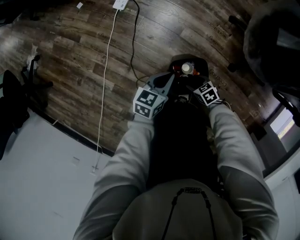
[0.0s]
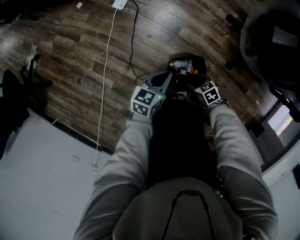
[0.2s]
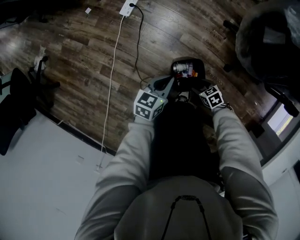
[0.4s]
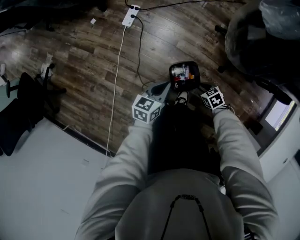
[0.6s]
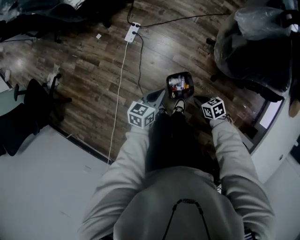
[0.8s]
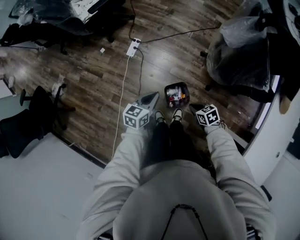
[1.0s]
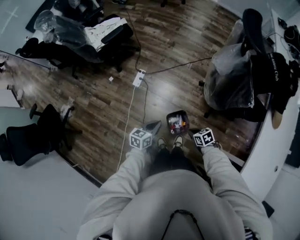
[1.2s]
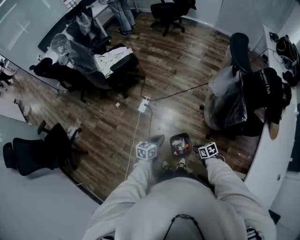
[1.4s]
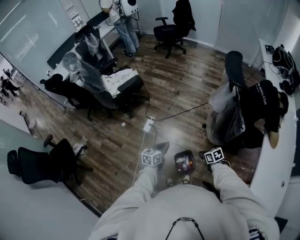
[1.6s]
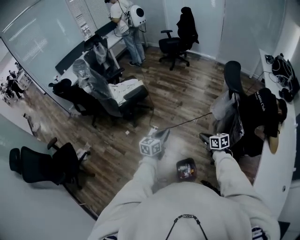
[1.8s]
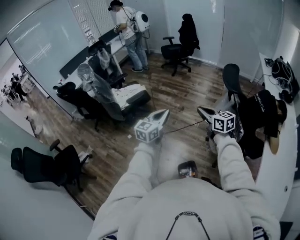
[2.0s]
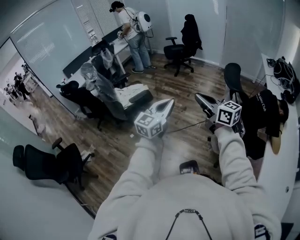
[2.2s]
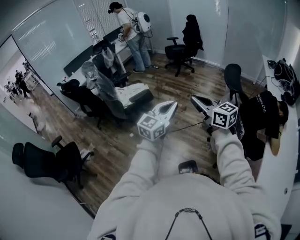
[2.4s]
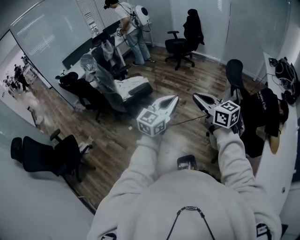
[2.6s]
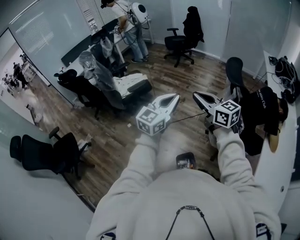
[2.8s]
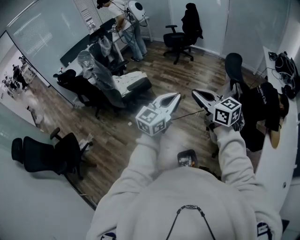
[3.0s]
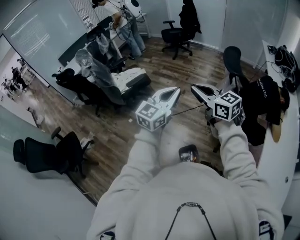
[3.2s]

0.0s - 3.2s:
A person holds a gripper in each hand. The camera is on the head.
0.0s - 1.6s: The grippers both shift upward by some 50 cm. The right gripper swivels approximately 30 degrees, and closes.
1.6s - 3.2s: The grippers both shift upward by about 40 cm. The left gripper rotates roughly 40 degrees. Meanwhile the right gripper tilts its fingers approximately 50 degrees upward.

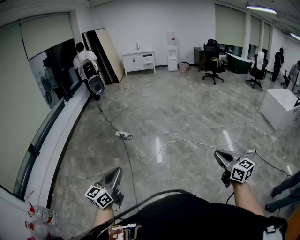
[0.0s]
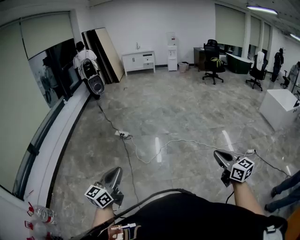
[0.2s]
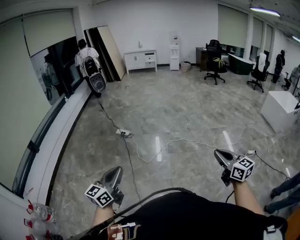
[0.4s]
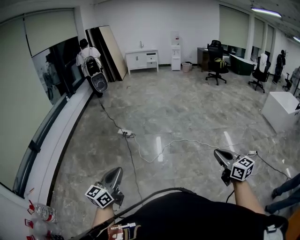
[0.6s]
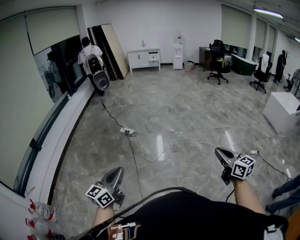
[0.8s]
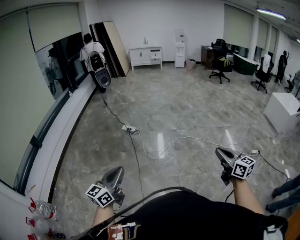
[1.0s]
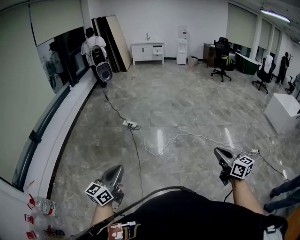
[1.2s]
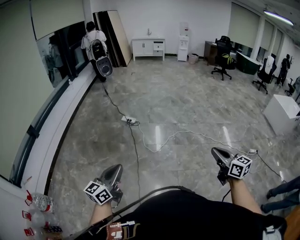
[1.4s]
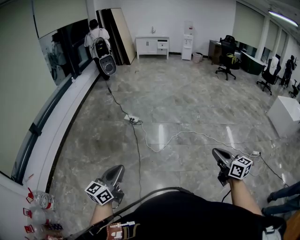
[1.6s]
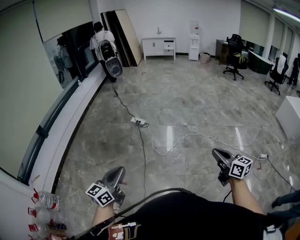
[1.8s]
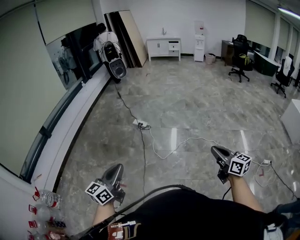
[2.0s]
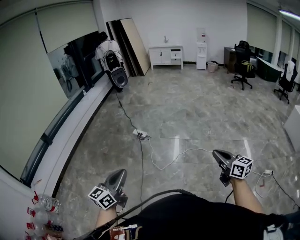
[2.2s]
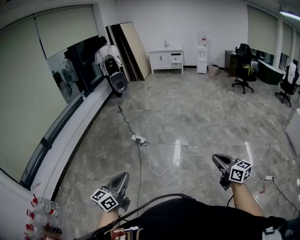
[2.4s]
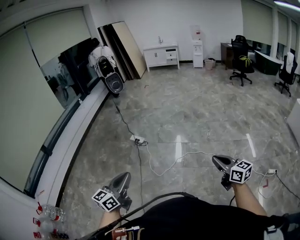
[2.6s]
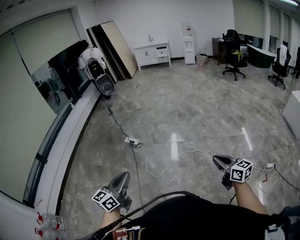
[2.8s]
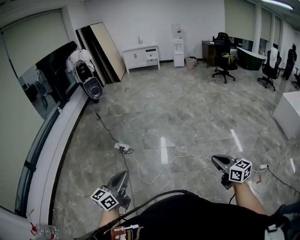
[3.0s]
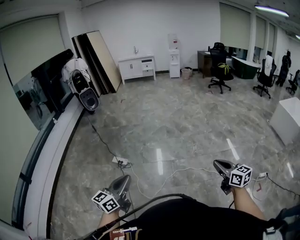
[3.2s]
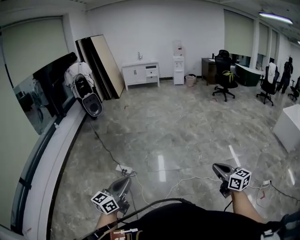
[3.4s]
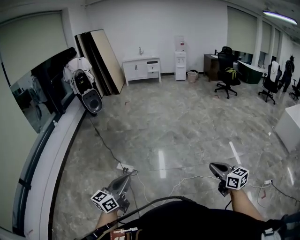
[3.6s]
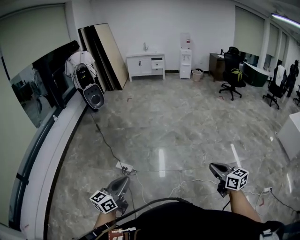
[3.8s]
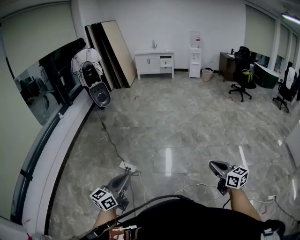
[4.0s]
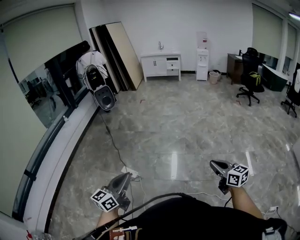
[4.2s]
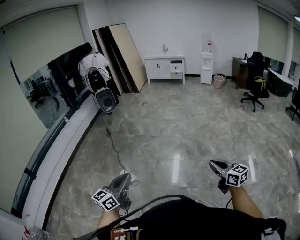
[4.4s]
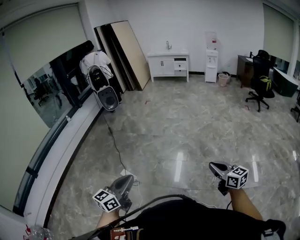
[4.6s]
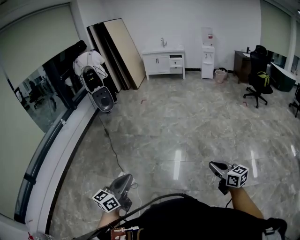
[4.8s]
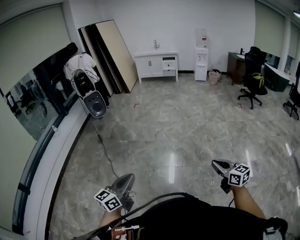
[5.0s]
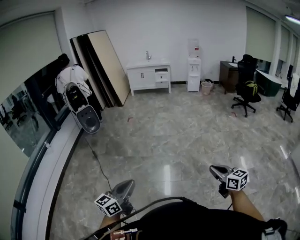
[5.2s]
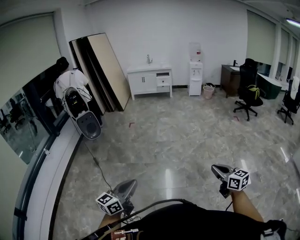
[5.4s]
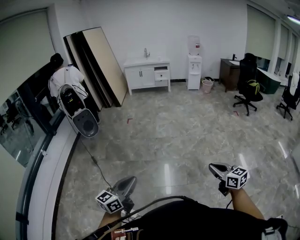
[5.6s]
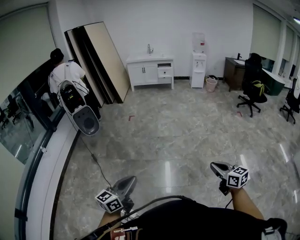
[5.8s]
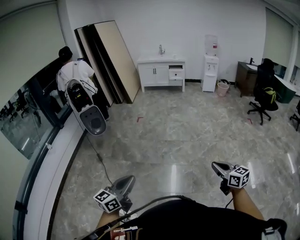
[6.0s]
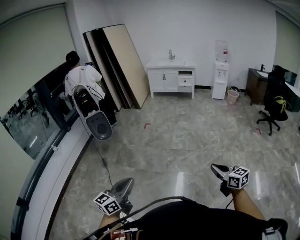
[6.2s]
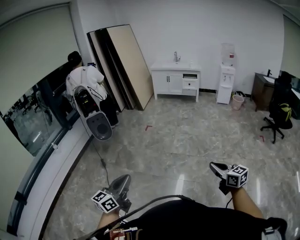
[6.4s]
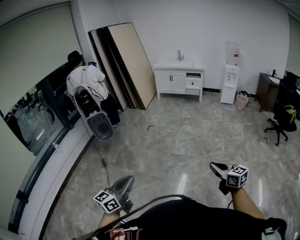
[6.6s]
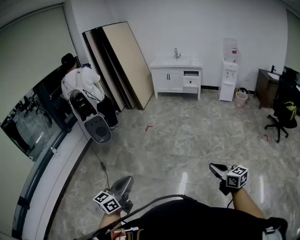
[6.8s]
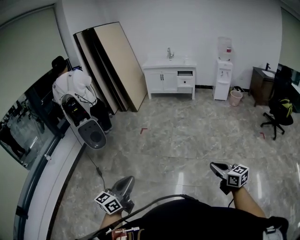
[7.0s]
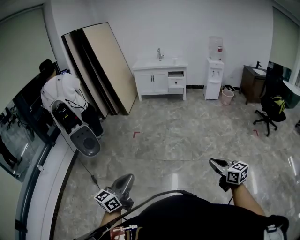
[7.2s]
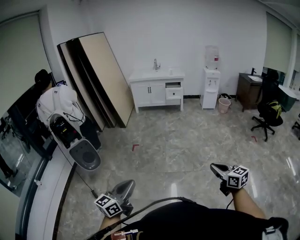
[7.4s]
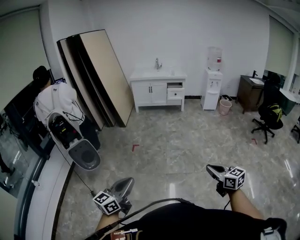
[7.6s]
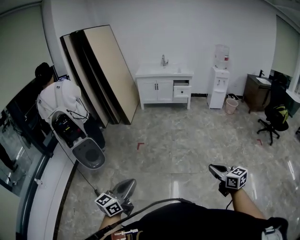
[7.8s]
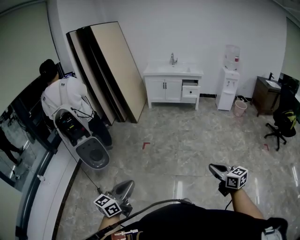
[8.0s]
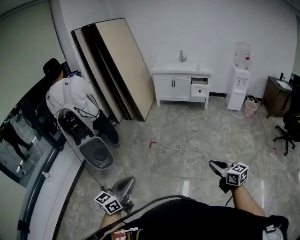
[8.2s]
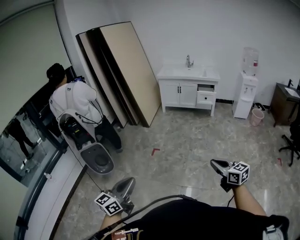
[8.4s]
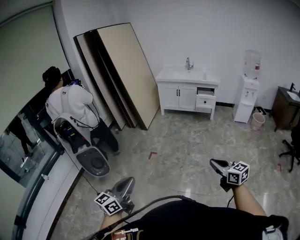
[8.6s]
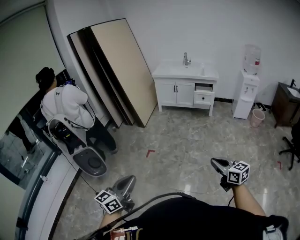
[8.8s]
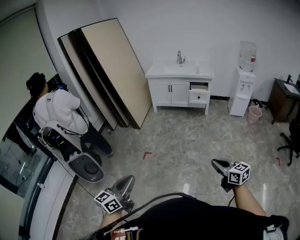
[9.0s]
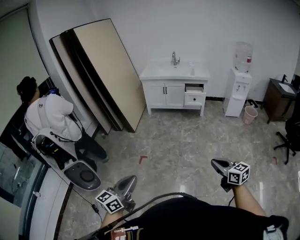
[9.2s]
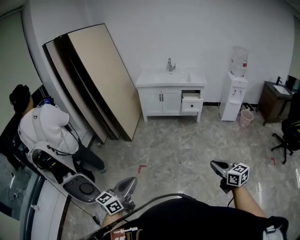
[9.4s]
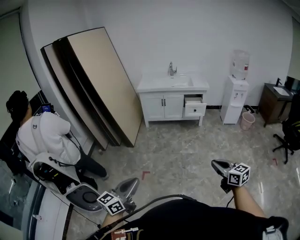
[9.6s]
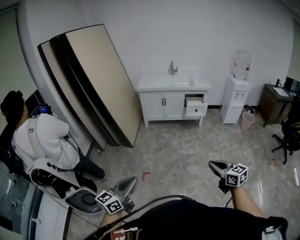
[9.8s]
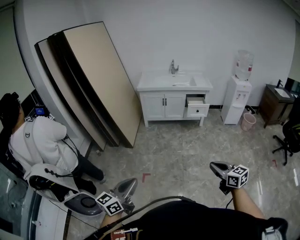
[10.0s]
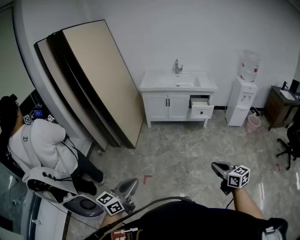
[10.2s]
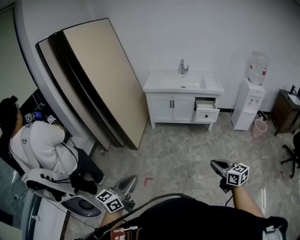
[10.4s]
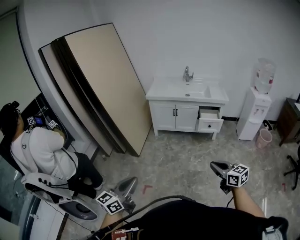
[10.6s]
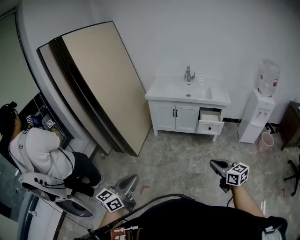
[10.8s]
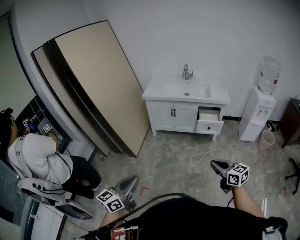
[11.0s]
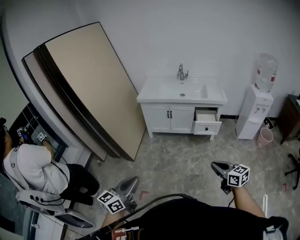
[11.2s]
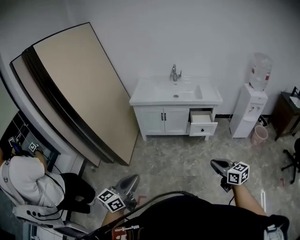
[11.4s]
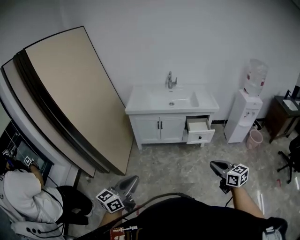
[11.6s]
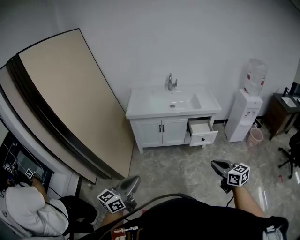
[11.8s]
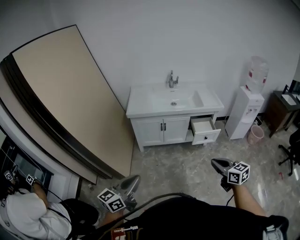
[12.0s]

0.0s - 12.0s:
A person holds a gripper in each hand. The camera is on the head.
0.0s - 1.6s: The grippers both shift to the left by about 15 cm.
1.6s - 3.0s: The pair of grippers is taken forward and to the right, roughly 40 cm.
3.0s - 4.4s: Both grippers are carried forward, some 50 cm.
4.4s - 6.0s: The two grippers travel together, forward, some 60 cm.
6.0s - 7.6s: Both grippers are carried forward, approximately 50 cm.
7.6s - 9.0s: Both grippers travel together forward, some 40 cm.
9.0s - 10.4s: The two grippers go roughly 40 cm forward.
10.4s - 12.0s: The grippers both shift forward by about 40 cm.

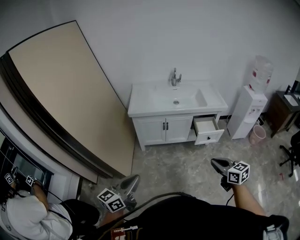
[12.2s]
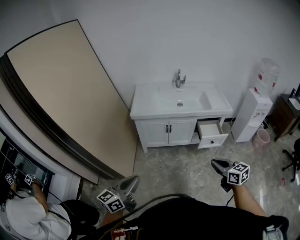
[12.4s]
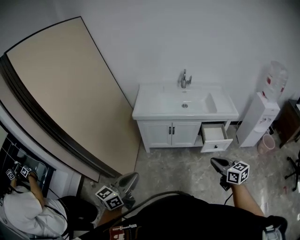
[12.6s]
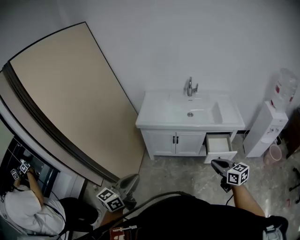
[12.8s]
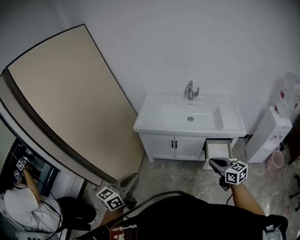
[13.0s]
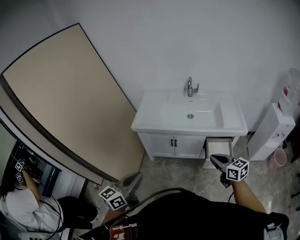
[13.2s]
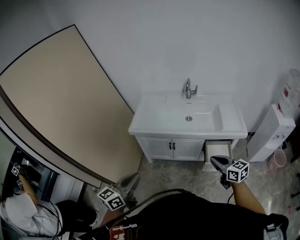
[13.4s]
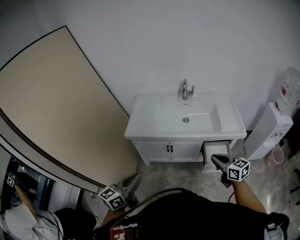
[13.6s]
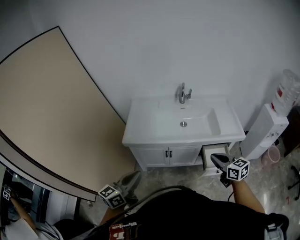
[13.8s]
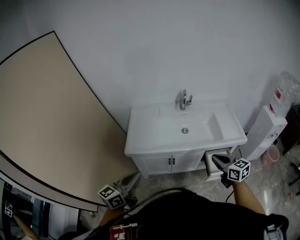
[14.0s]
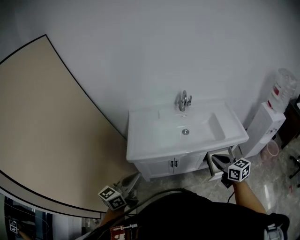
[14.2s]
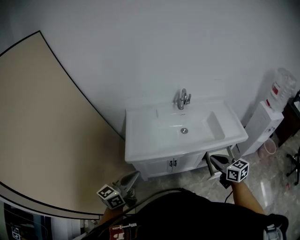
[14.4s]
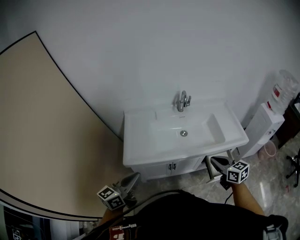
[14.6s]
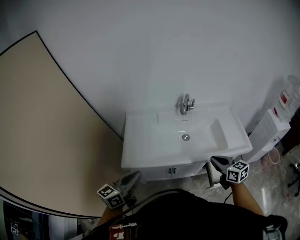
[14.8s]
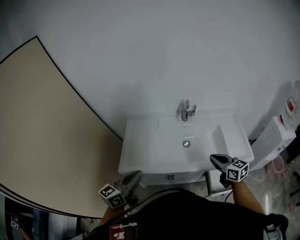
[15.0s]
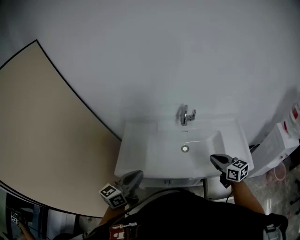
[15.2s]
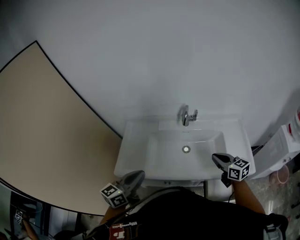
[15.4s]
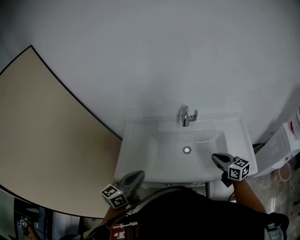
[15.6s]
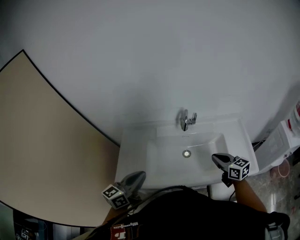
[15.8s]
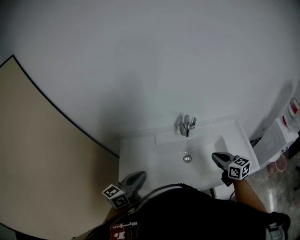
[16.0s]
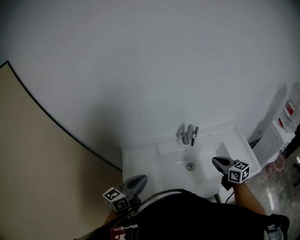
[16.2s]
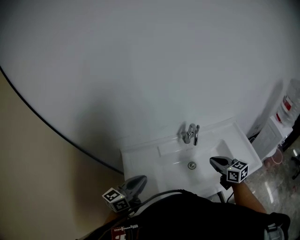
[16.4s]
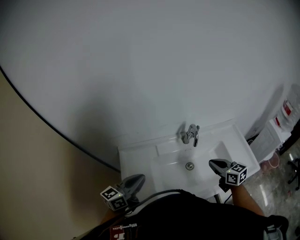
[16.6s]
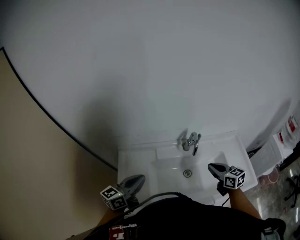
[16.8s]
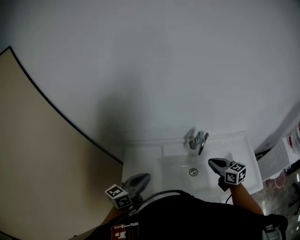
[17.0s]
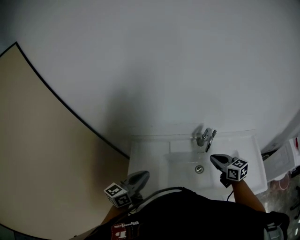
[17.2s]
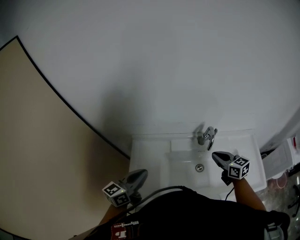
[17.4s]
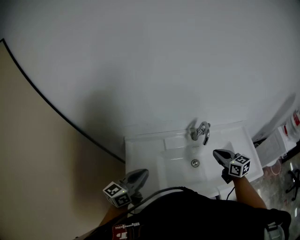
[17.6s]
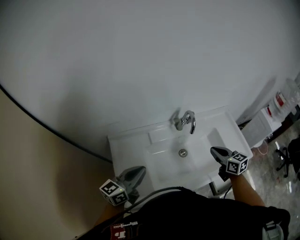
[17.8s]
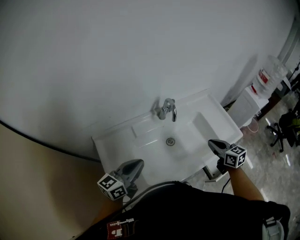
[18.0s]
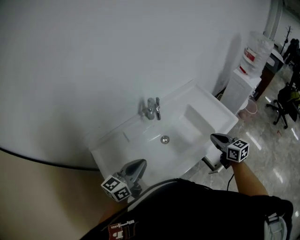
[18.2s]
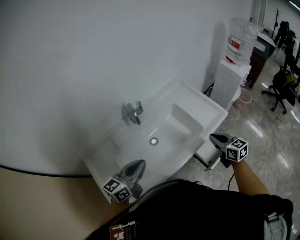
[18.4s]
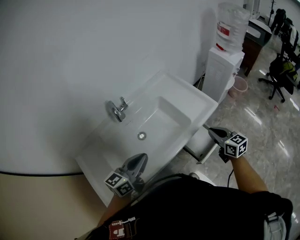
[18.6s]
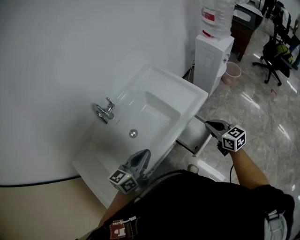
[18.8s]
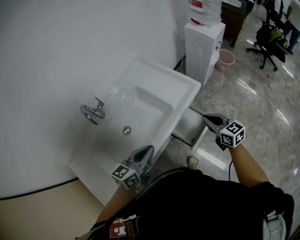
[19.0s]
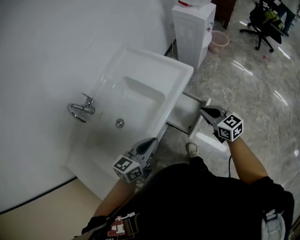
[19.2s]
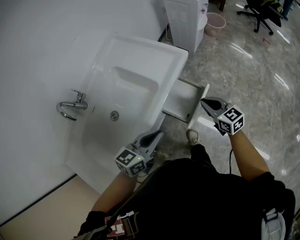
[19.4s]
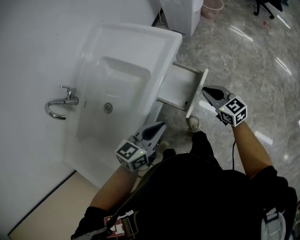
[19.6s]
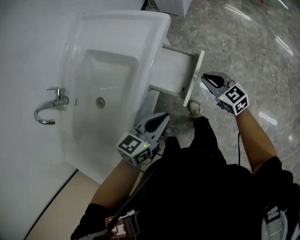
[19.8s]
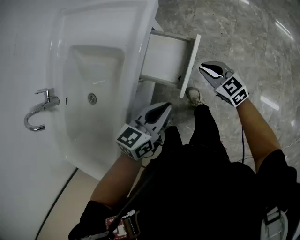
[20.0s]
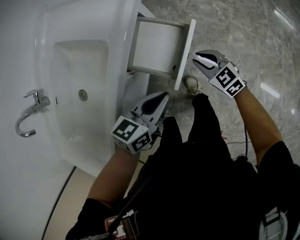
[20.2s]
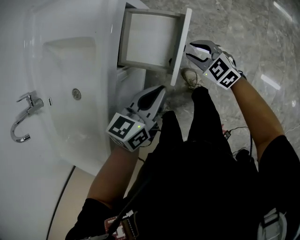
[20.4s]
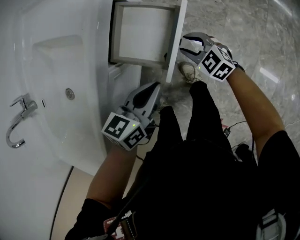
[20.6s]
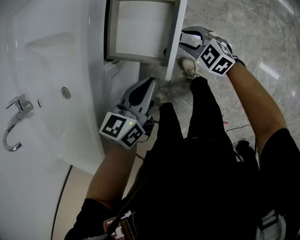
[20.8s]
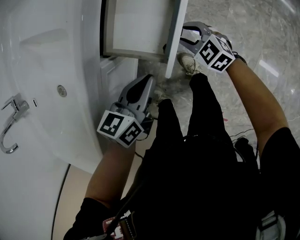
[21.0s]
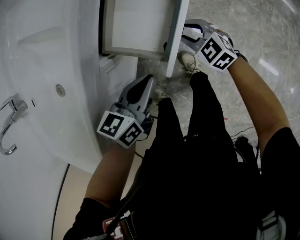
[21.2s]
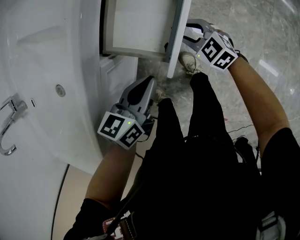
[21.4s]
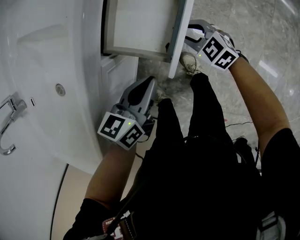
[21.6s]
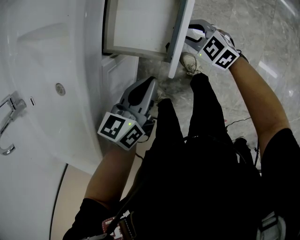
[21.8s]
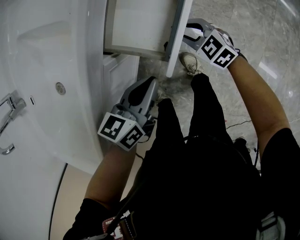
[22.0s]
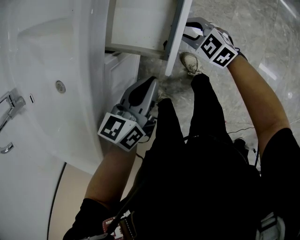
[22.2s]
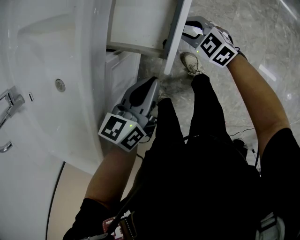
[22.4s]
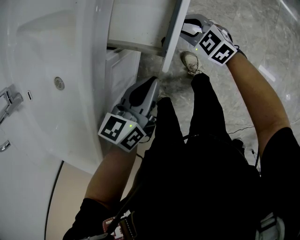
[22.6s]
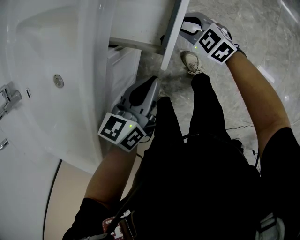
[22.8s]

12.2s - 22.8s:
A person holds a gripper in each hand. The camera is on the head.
12.2s - 13.8s: The grippers both shift forward by roughly 40 cm.
13.8s - 15.2s: The grippers both shift forward by some 30 cm.
15.2s - 16.8s: The two grippers go approximately 20 cm forward and to the left.
16.8s - 18.2s: The right gripper ends up about 20 cm from where it was, and changes its angle by some 30 degrees, while the left gripper changes place by about 10 cm, and changes its angle by roughly 20 degrees.
18.2s - 19.8s: The right gripper moves approximately 40 cm. The left gripper moves about 50 cm, and turns by approximately 50 degrees.
19.8s - 21.2s: The two grippers go roughly 20 cm downward. The right gripper changes its angle by some 20 degrees, and opens its fingers.
21.2s - 22.8s: The grippers move only a little.
